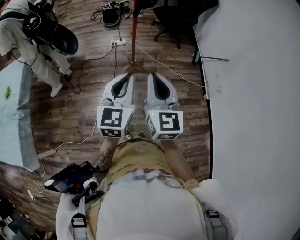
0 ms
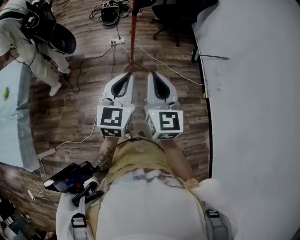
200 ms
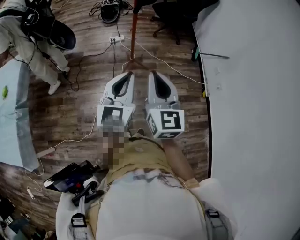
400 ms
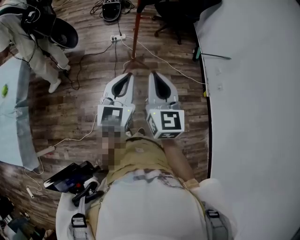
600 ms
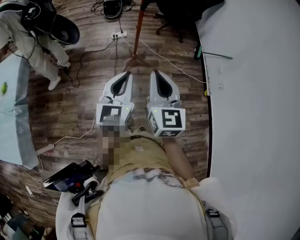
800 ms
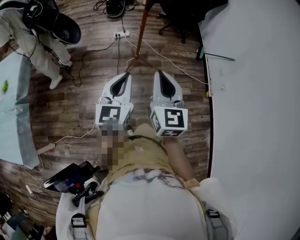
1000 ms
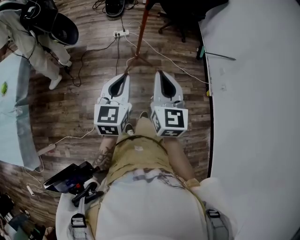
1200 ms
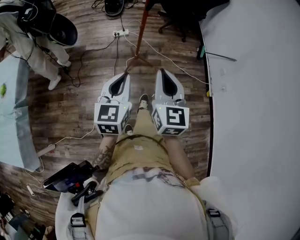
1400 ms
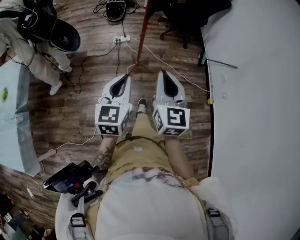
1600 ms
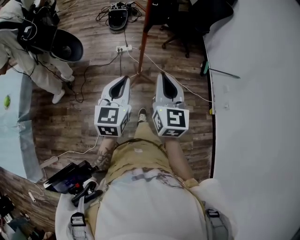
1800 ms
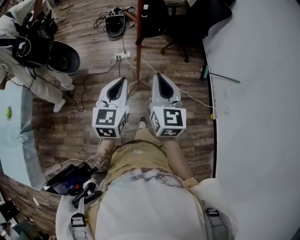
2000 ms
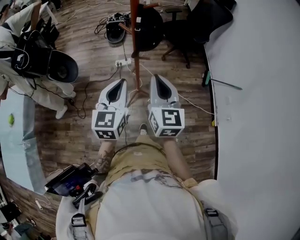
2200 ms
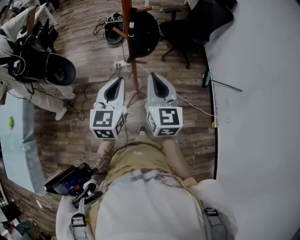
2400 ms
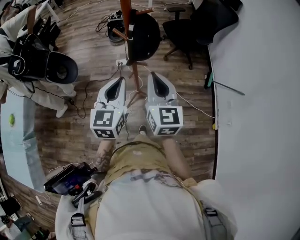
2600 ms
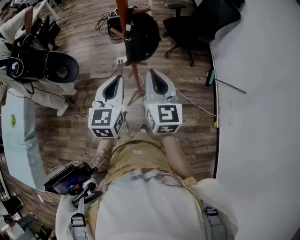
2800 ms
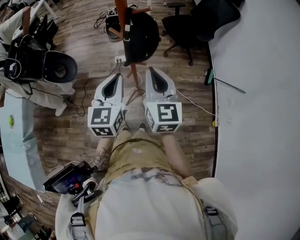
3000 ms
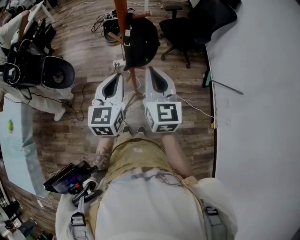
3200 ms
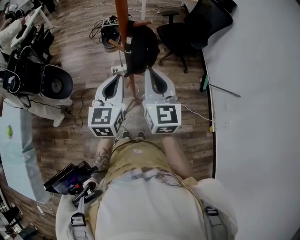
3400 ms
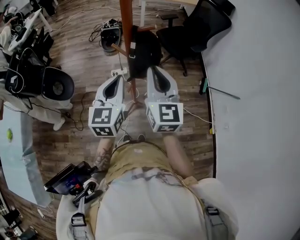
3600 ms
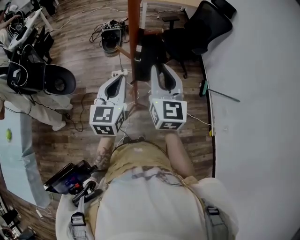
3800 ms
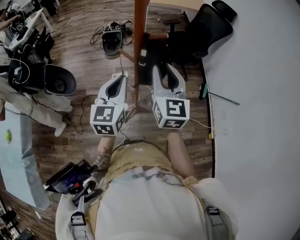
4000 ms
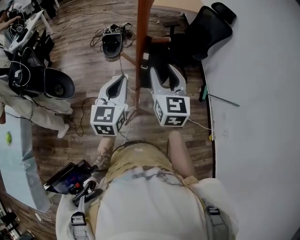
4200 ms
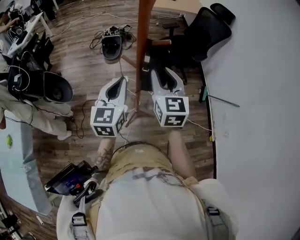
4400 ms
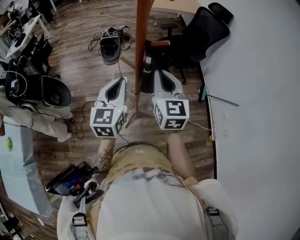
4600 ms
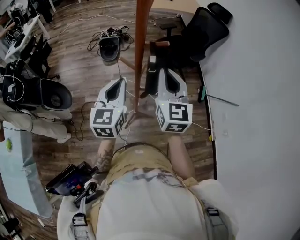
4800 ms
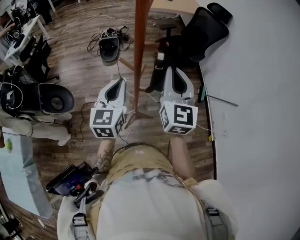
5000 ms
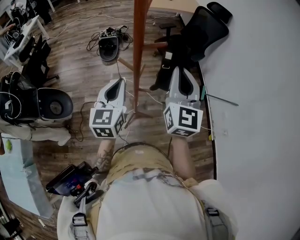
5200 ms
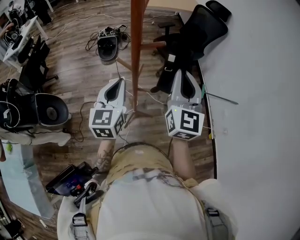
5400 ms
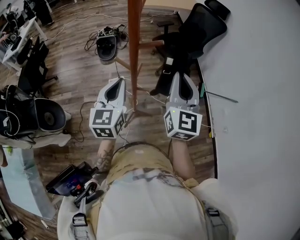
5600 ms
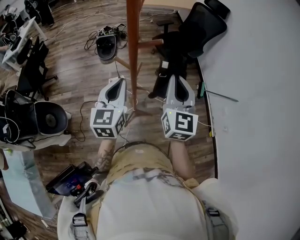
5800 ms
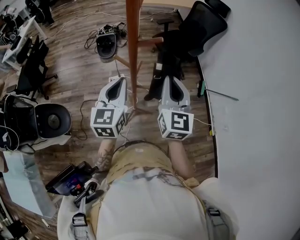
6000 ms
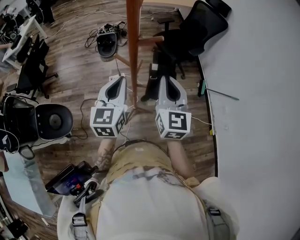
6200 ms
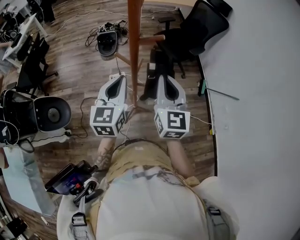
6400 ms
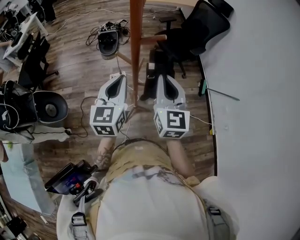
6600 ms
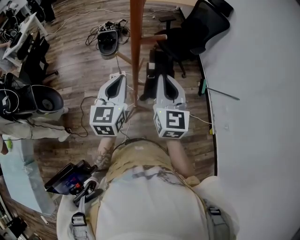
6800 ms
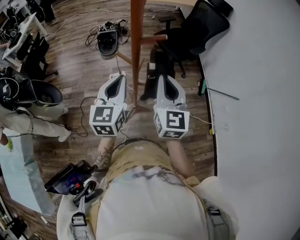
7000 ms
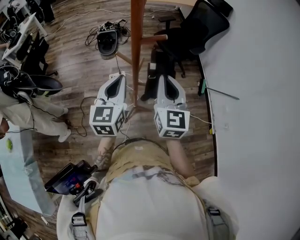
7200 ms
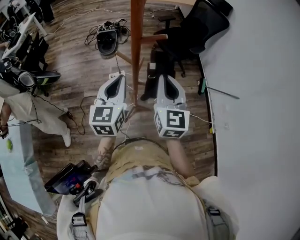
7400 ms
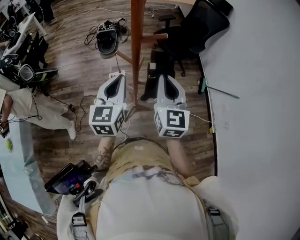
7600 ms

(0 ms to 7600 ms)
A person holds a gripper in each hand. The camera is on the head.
0 ms - 1600 ms: The left gripper shifts roughly 15 cm forward, to the left and downward. Meanwhile the right gripper heads forward, covering about 10 cm.
1600 ms - 3000 ms: The two grippers go roughly 30 cm forward.
3000 ms - 4600 ms: Both grippers move forward, about 5 cm. The right gripper opens, then closes once more.
4600 ms - 6000 ms: The right gripper moves to the right, about 5 cm.
6000 ms - 7600 ms: The grippers move only a little.

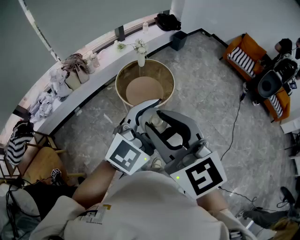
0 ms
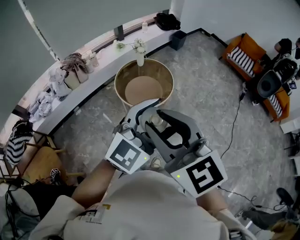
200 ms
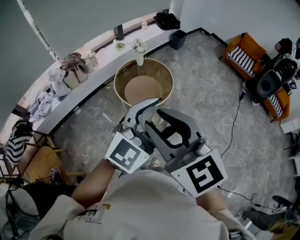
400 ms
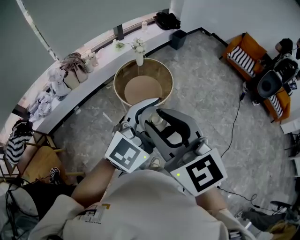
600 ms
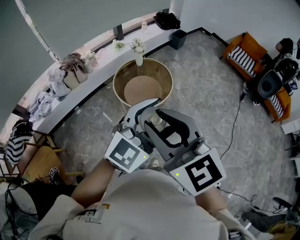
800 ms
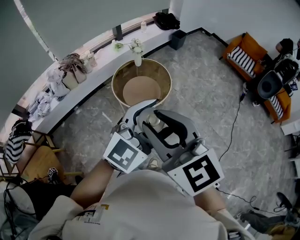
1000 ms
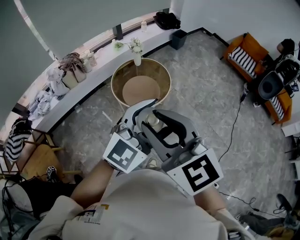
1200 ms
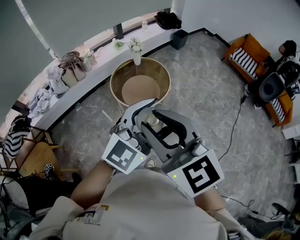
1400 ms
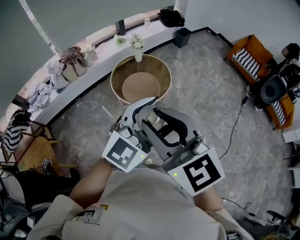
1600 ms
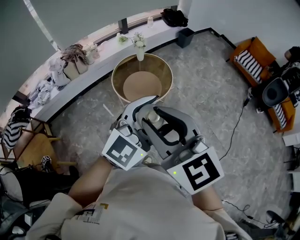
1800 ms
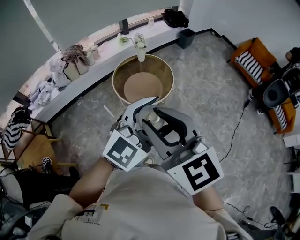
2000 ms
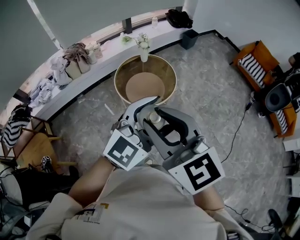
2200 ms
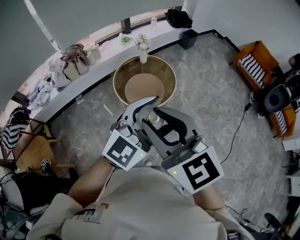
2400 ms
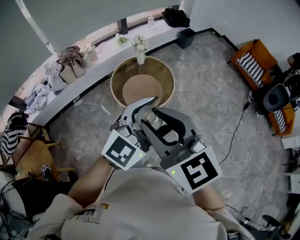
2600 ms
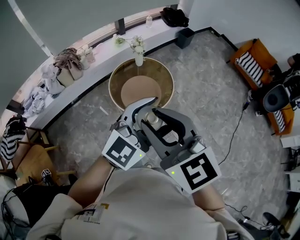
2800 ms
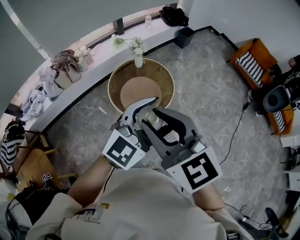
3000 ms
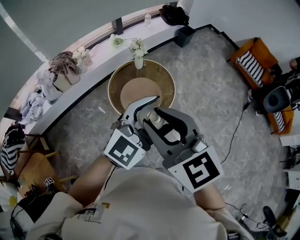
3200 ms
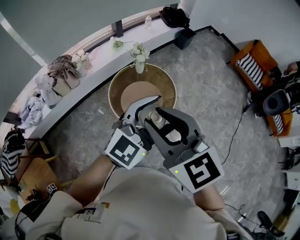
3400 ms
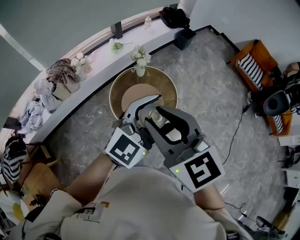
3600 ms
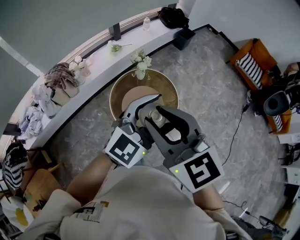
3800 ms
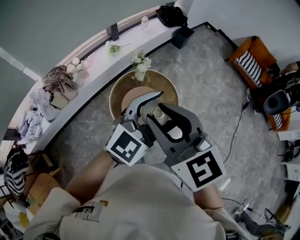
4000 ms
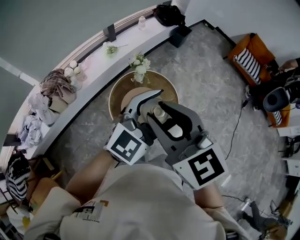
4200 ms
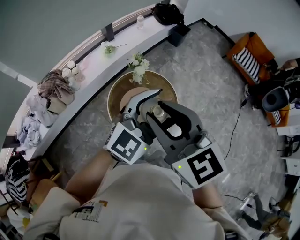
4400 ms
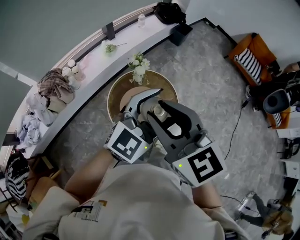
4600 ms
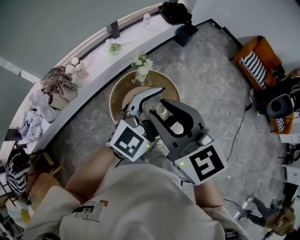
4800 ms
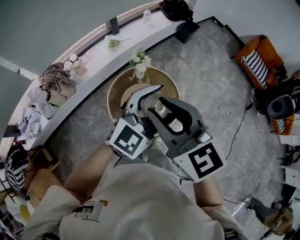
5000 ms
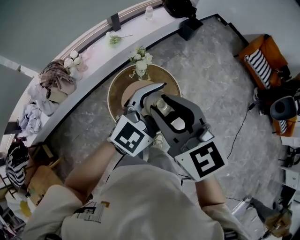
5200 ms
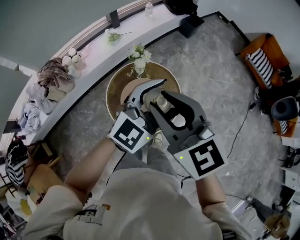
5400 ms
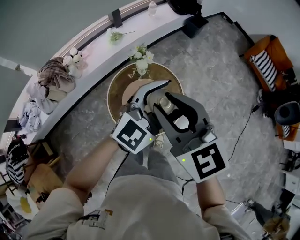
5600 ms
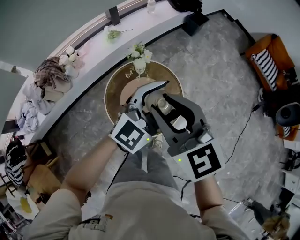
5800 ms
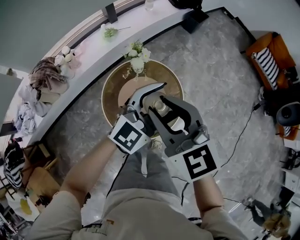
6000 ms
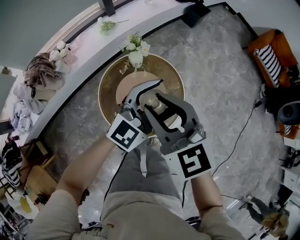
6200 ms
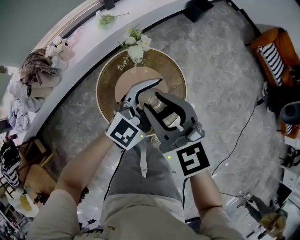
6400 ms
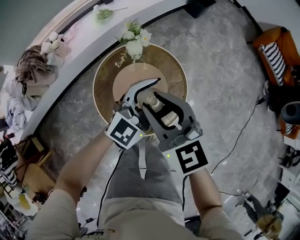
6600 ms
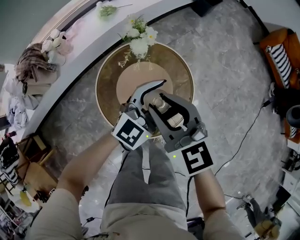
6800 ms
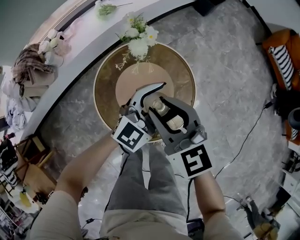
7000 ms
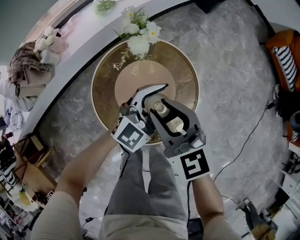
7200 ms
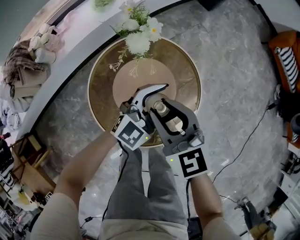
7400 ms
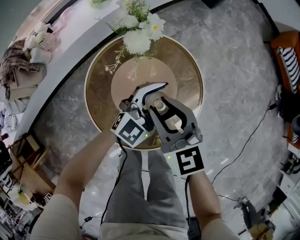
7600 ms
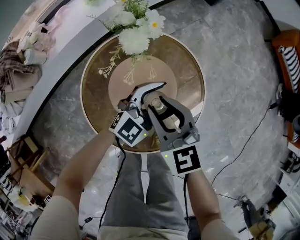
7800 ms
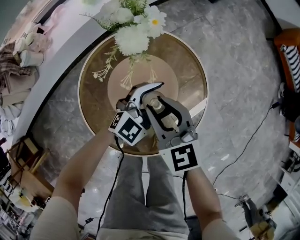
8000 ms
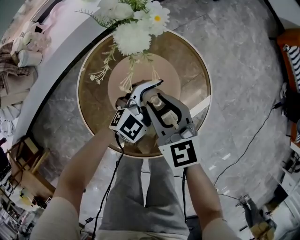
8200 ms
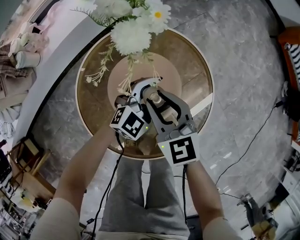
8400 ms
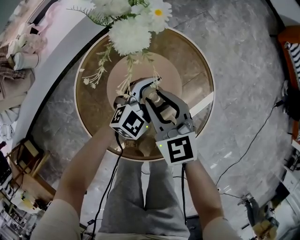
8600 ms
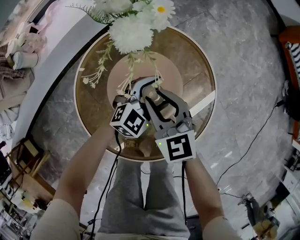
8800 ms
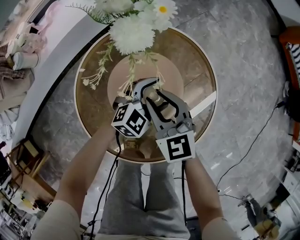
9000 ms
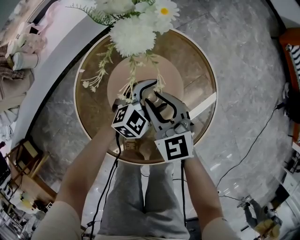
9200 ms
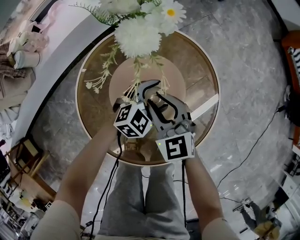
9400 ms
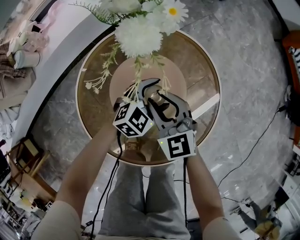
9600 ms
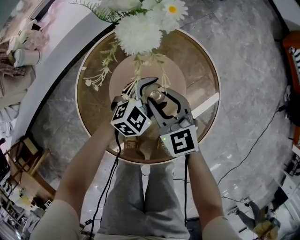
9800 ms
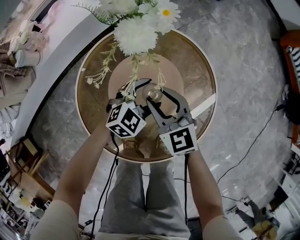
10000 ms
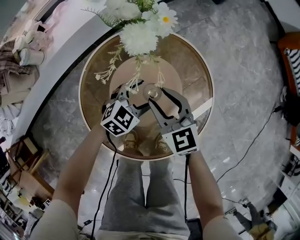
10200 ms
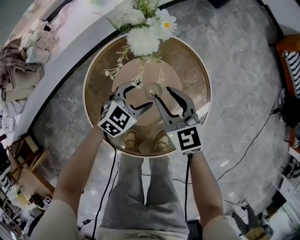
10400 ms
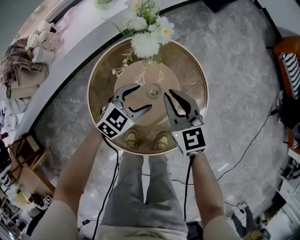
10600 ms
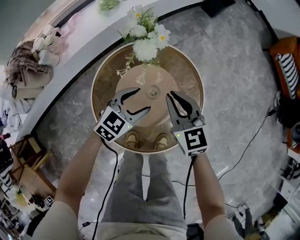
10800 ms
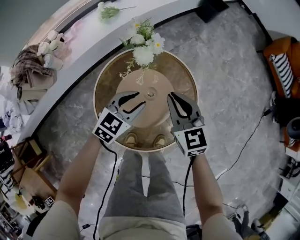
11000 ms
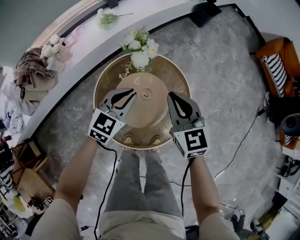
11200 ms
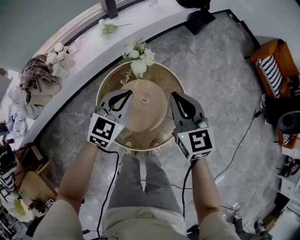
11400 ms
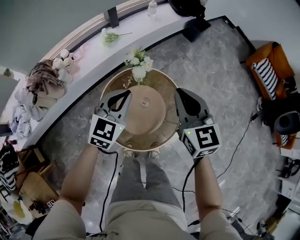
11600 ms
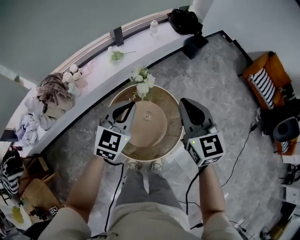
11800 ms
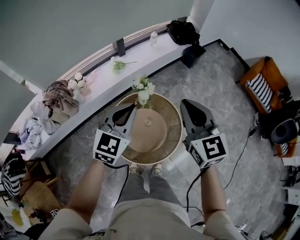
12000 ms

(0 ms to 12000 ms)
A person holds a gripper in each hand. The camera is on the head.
0 ms - 1600 ms: Both grippers move to the right, some 10 cm.
1600 ms - 3000 ms: Both grippers travel together forward, roughly 20 cm.
3000 ms - 4400 ms: The two grippers go roughly 30 cm forward and to the left.
4400 ms - 6000 ms: The grippers both shift downward and forward by some 20 cm.
6000 ms - 7600 ms: Both grippers travel together downward, roughly 35 cm.
7600 ms - 9000 ms: Both grippers travel together downward, about 20 cm. The left gripper swivels roughly 20 degrees.
9000 ms - 10400 ms: The left gripper travels to the left by roughly 5 cm. The right gripper moves some 5 cm.
10400 ms - 12000 ms: The two grippers go approximately 50 cm upward. The right gripper closes its fingers. The left gripper turns by some 30 degrees, and closes up.

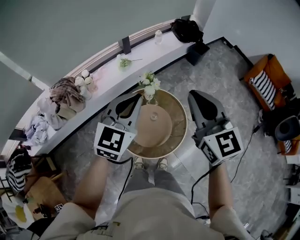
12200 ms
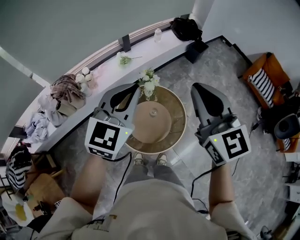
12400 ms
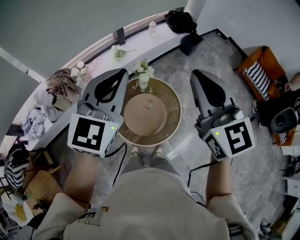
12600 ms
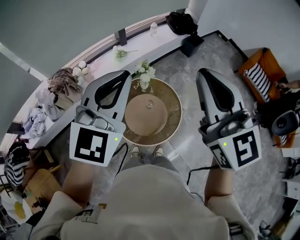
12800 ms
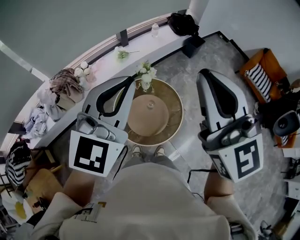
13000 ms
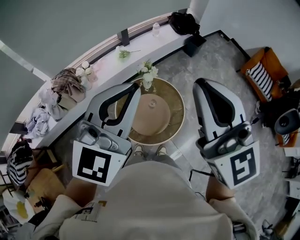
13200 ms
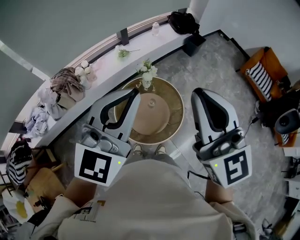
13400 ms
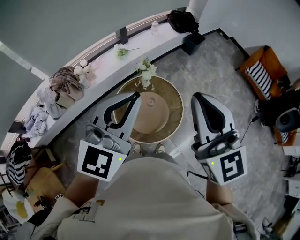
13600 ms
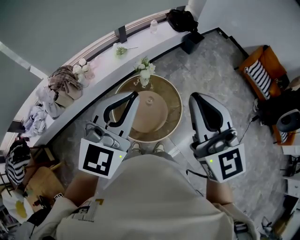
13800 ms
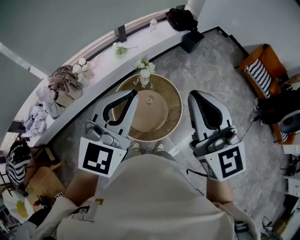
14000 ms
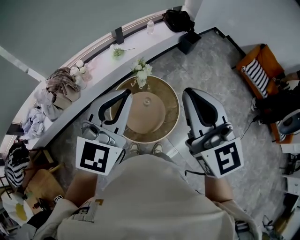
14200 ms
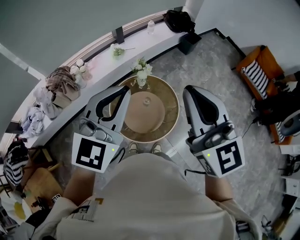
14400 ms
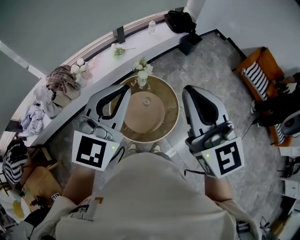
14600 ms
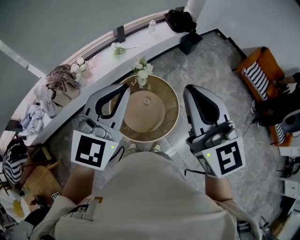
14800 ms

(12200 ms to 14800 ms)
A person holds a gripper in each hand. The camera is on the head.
12200 ms - 13400 ms: Both grippers move upward and backward, roughly 15 cm.
13400 ms - 14800 ms: The grippers make only small movements.

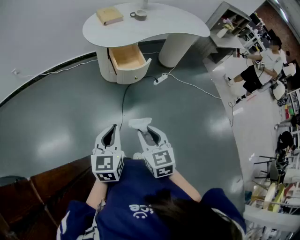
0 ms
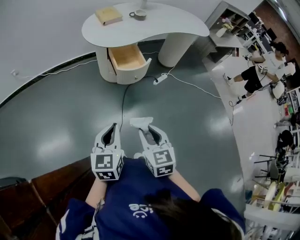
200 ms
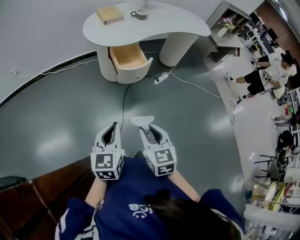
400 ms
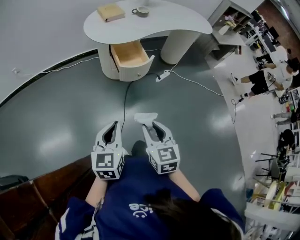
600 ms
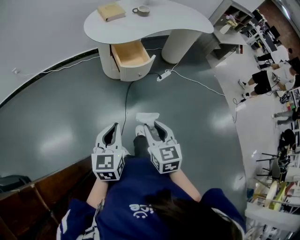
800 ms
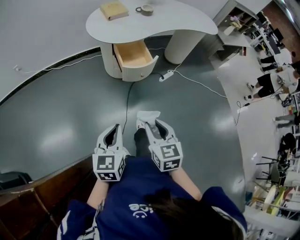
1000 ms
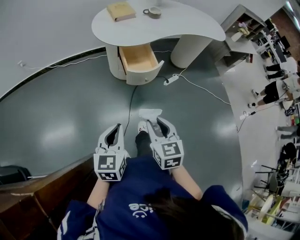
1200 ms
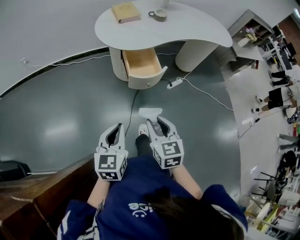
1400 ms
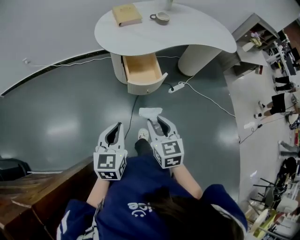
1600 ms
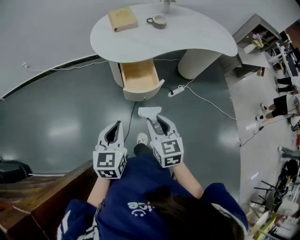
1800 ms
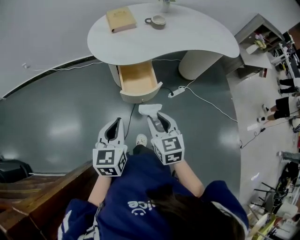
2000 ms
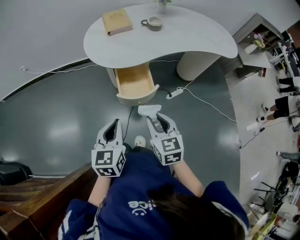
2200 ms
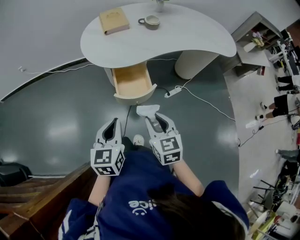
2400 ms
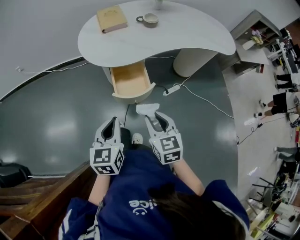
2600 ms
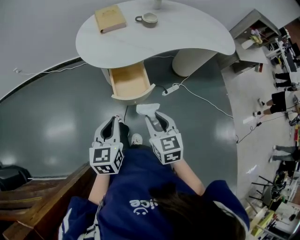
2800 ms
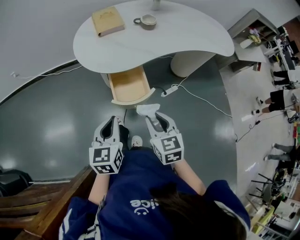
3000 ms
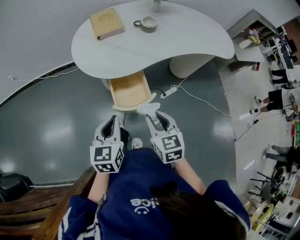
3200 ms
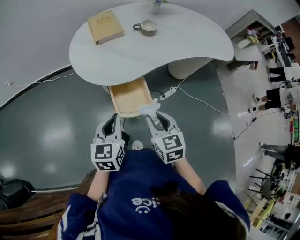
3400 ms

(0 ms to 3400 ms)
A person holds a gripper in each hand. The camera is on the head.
0 ms - 1600 ms: Both grippers move forward, roughly 15 cm.
1600 ms - 3400 ms: The grippers both shift forward by roughly 20 cm.
